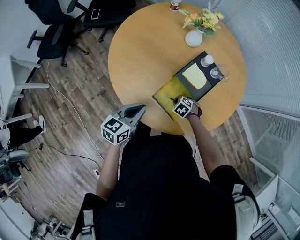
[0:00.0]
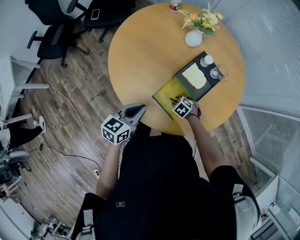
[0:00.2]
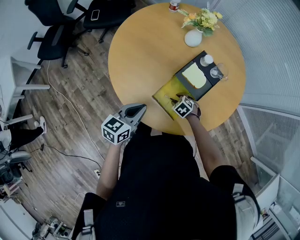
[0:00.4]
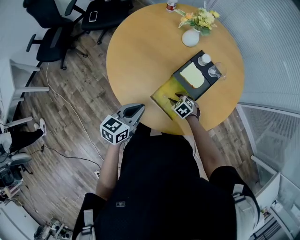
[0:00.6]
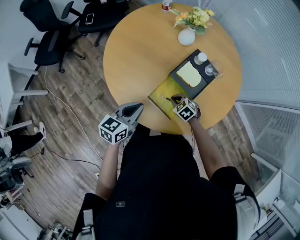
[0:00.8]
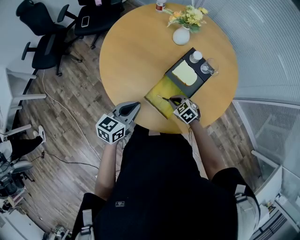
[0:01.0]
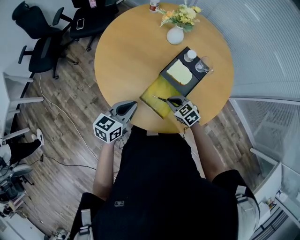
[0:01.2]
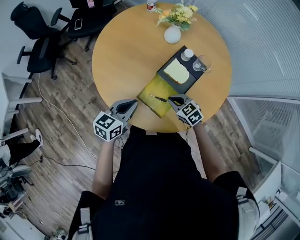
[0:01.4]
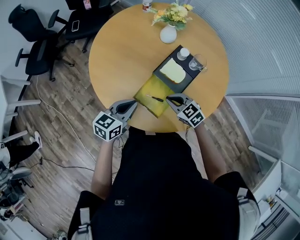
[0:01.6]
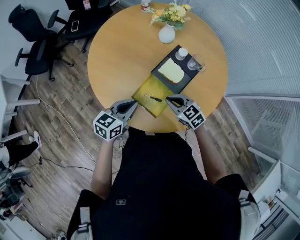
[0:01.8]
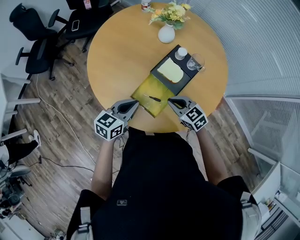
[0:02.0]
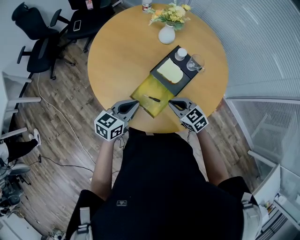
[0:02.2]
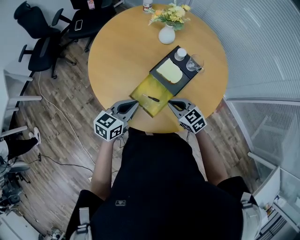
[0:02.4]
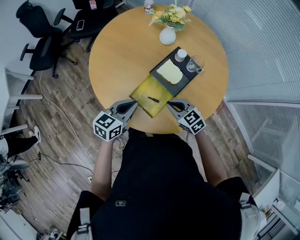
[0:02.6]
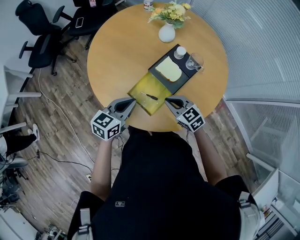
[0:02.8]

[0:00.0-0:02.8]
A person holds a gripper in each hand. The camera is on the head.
0.0 to 1.4 s: The right gripper goes some 15 cm upward, swivels roughly 30 degrees, and opens and closes again.
1.4 to 2.8 s: The left gripper shifts some 5 cm to the right. Meanwhile the right gripper goes about 5 cm upward.

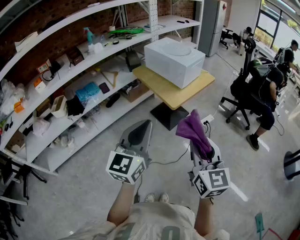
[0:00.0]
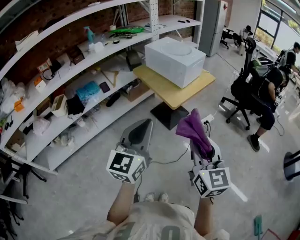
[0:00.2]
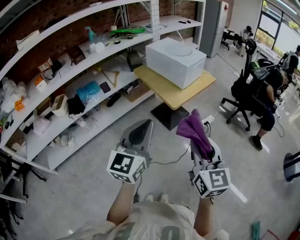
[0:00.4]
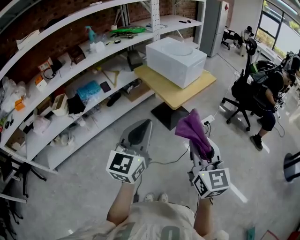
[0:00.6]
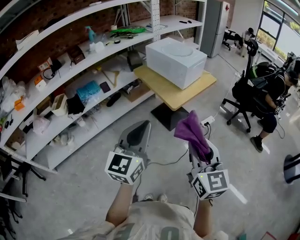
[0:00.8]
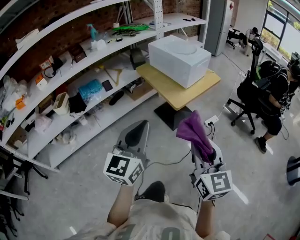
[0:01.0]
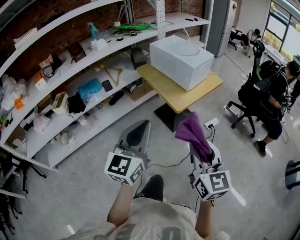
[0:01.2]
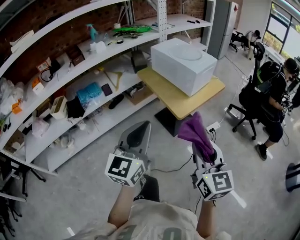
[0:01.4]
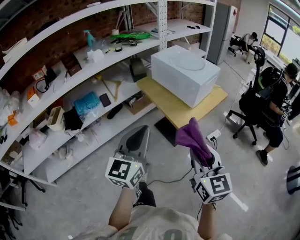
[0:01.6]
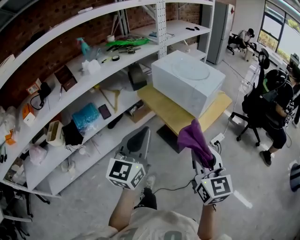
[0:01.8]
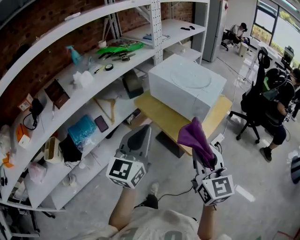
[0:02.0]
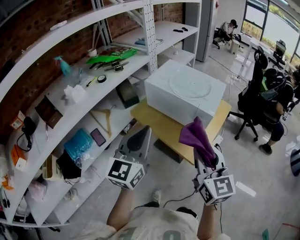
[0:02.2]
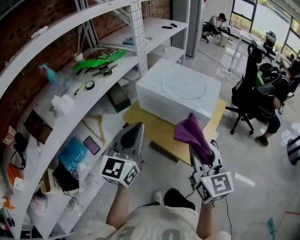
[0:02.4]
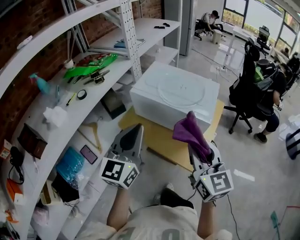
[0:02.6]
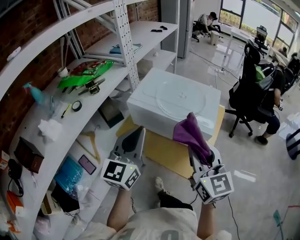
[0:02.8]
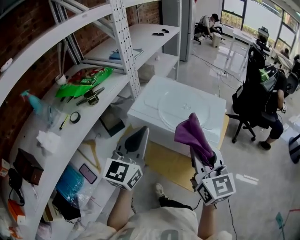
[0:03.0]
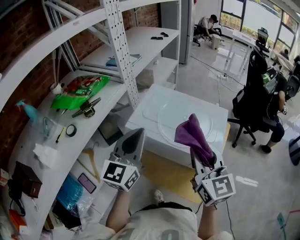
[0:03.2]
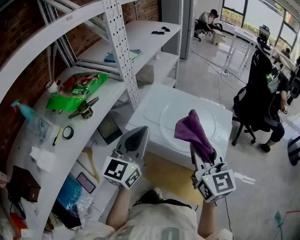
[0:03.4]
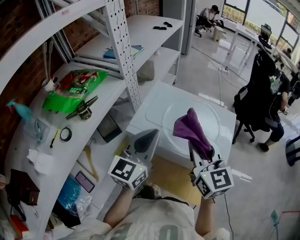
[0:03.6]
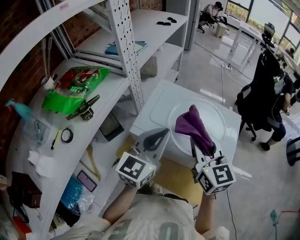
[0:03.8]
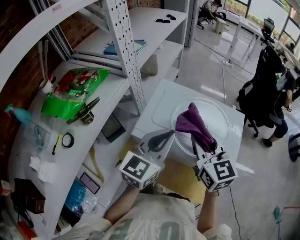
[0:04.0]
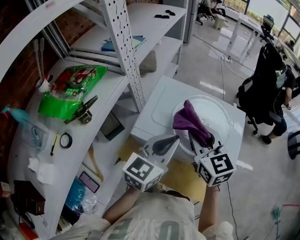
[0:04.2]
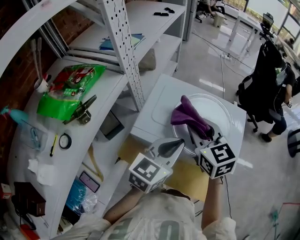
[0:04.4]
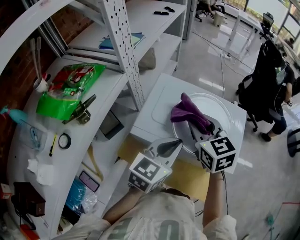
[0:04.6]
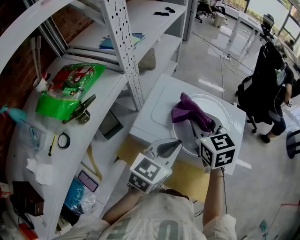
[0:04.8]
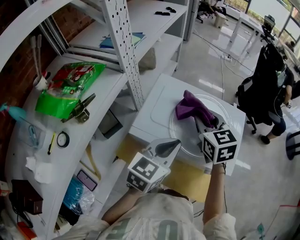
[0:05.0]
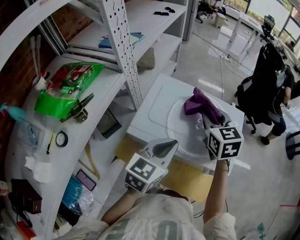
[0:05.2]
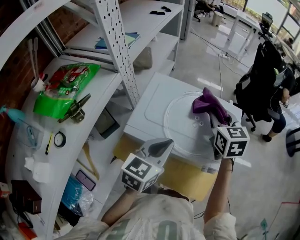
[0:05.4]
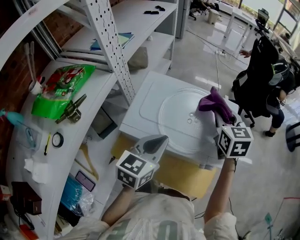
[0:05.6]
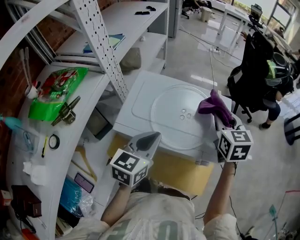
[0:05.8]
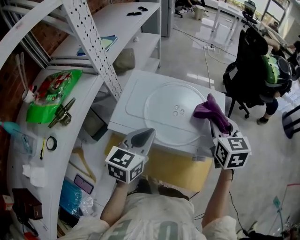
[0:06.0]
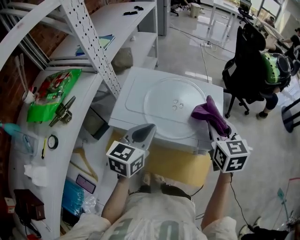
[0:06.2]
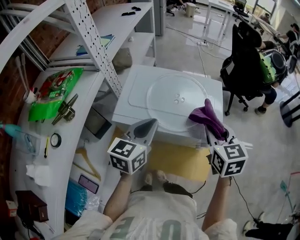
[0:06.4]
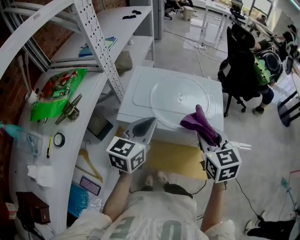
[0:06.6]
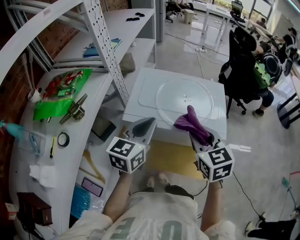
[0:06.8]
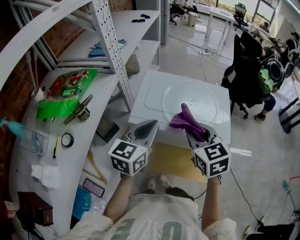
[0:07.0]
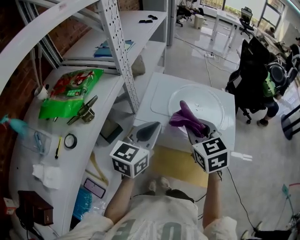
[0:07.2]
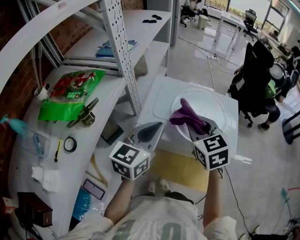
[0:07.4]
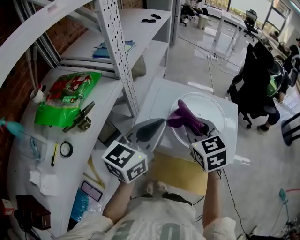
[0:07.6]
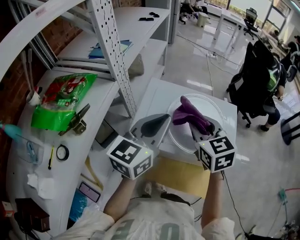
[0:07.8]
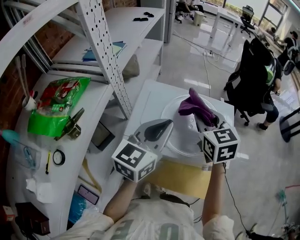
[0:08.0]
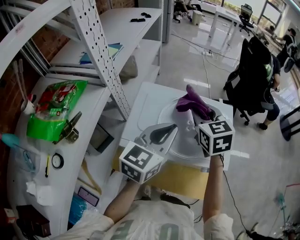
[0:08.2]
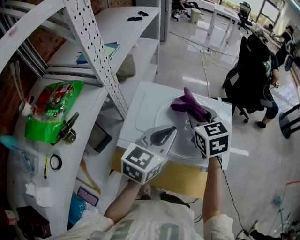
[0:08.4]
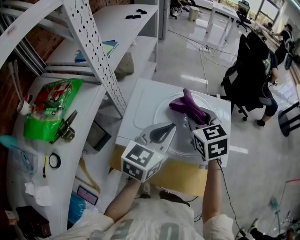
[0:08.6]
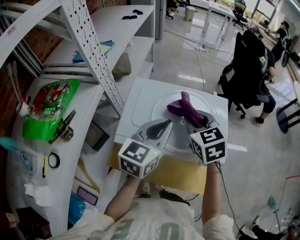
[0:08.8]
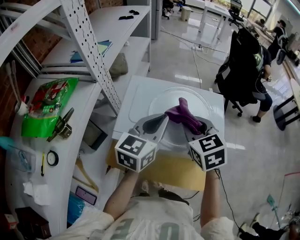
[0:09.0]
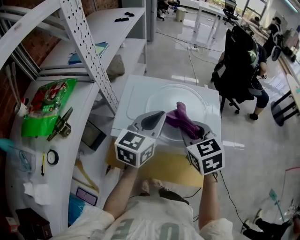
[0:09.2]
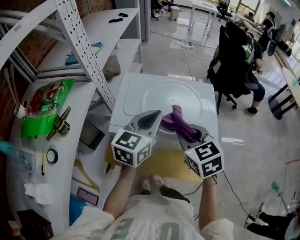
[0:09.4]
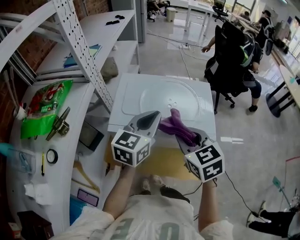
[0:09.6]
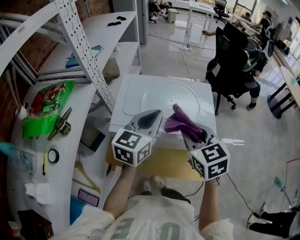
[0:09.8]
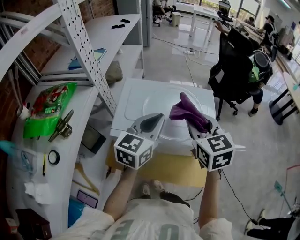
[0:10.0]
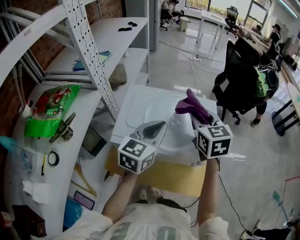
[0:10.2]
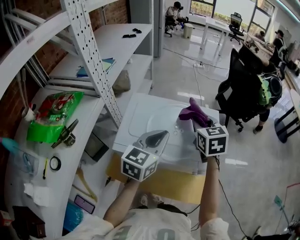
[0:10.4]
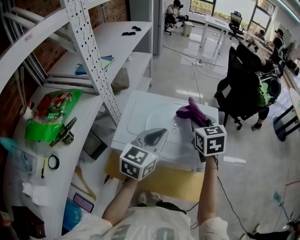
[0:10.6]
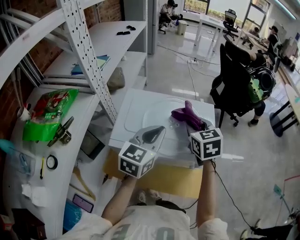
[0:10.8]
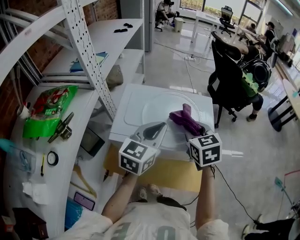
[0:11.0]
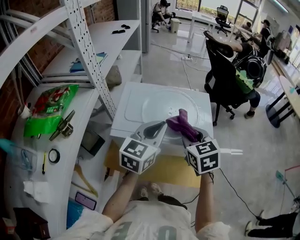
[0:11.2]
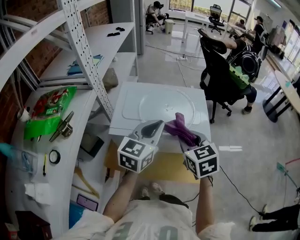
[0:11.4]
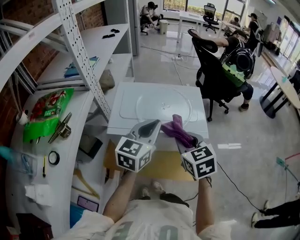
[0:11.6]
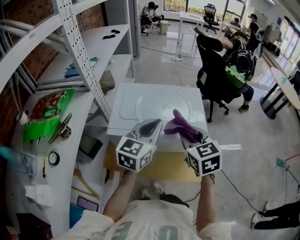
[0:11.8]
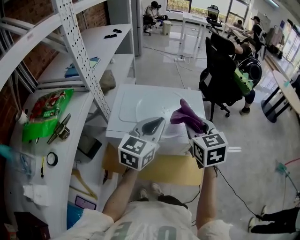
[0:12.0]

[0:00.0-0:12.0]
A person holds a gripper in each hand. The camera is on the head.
0.0 to 1.6 s: Both grippers travel together forward, some 15 cm.
1.6 to 3.0 s: The two grippers travel together, forward, approximately 50 cm. The right gripper swivels approximately 20 degrees; the left gripper swivels some 20 degrees.
3.0 to 4.4 s: The left gripper heads forward, downward and to the right, covering roughly 15 cm, and swivels about 30 degrees. The right gripper moves forward and to the left, roughly 20 cm.
4.4 to 6.0 s: The right gripper heads to the right, covering some 20 cm, and swivels approximately 20 degrees.
6.0 to 7.6 s: The left gripper moves upward and to the left, approximately 10 cm; the right gripper shifts roughly 20 cm to the left.
7.6 to 9.0 s: The right gripper shifts approximately 5 cm to the right, and travels forward and back again, roughly 10 cm each way. The left gripper moves to the right and downward, some 10 cm.
9.0 to 10.4 s: The right gripper travels forward and to the right by roughly 10 cm.
10.4 to 12.0 s: The right gripper goes about 10 cm backward. Meanwhile the left gripper changes place by roughly 5 cm.

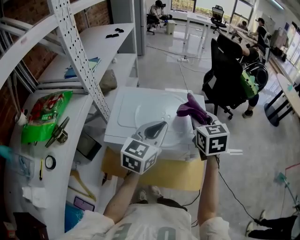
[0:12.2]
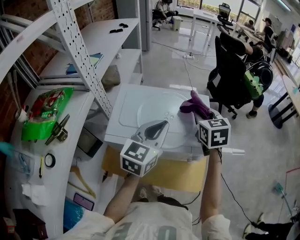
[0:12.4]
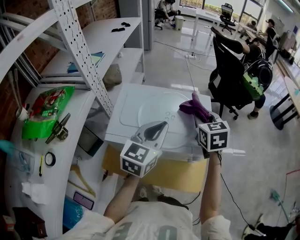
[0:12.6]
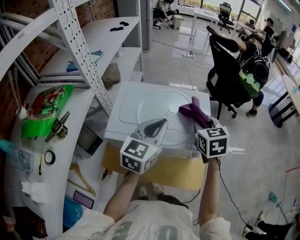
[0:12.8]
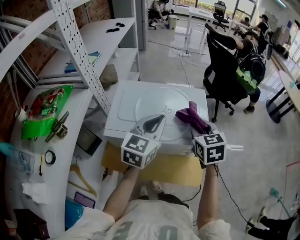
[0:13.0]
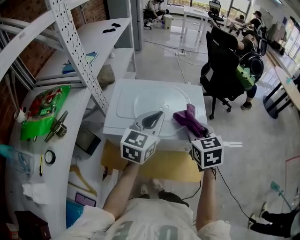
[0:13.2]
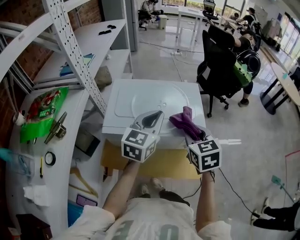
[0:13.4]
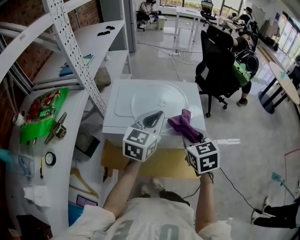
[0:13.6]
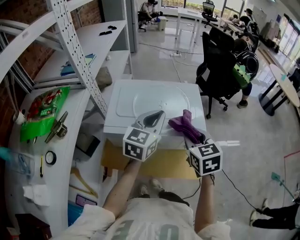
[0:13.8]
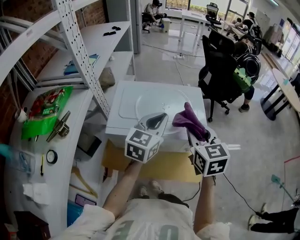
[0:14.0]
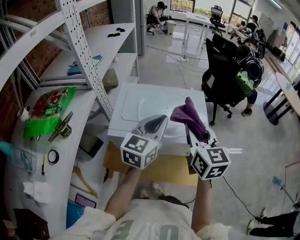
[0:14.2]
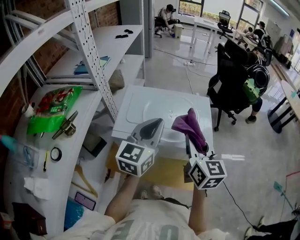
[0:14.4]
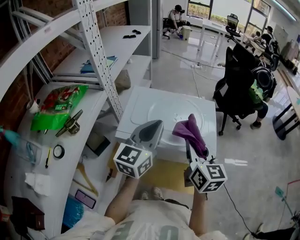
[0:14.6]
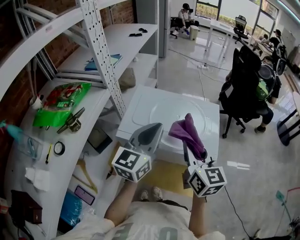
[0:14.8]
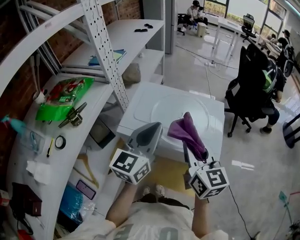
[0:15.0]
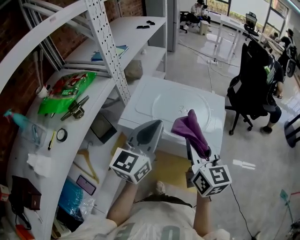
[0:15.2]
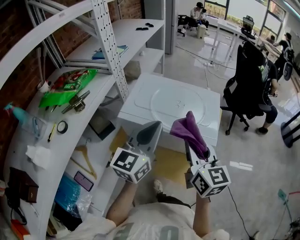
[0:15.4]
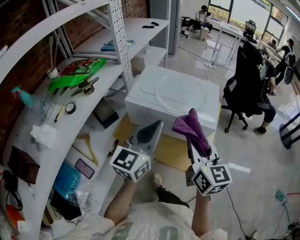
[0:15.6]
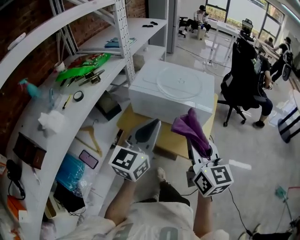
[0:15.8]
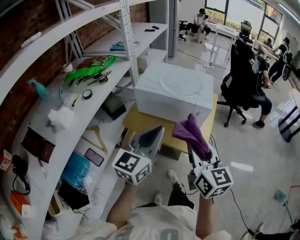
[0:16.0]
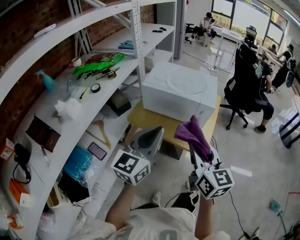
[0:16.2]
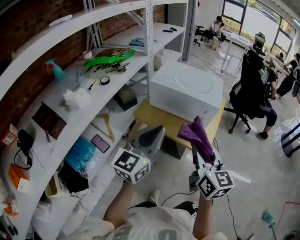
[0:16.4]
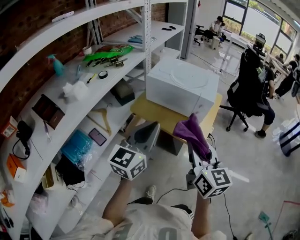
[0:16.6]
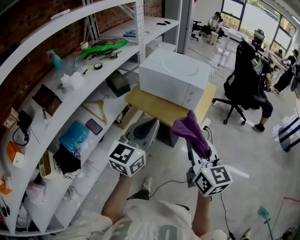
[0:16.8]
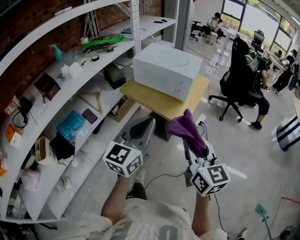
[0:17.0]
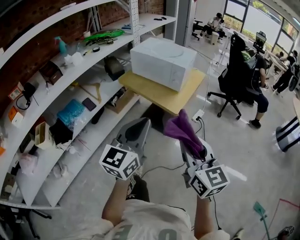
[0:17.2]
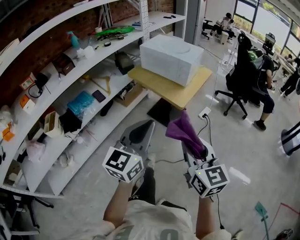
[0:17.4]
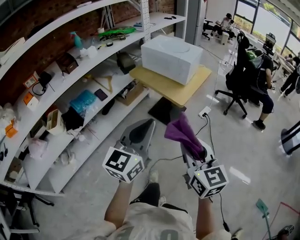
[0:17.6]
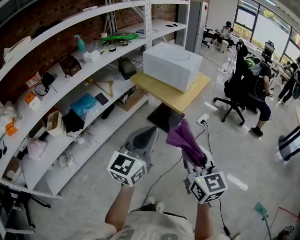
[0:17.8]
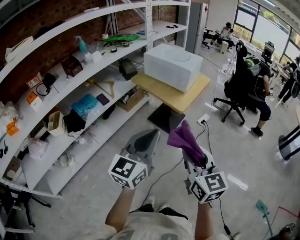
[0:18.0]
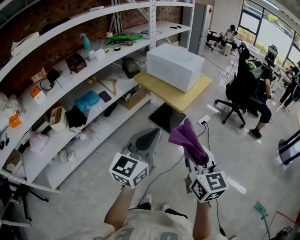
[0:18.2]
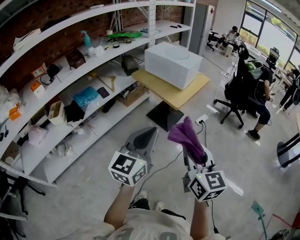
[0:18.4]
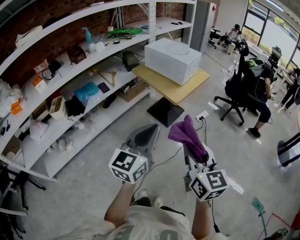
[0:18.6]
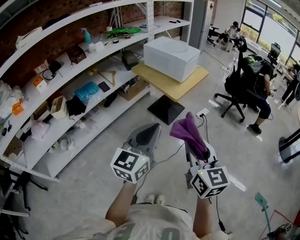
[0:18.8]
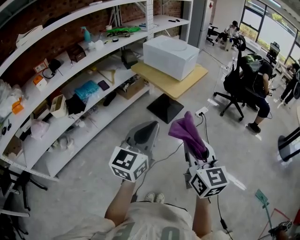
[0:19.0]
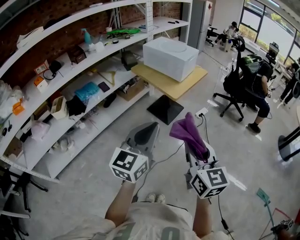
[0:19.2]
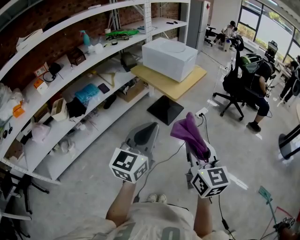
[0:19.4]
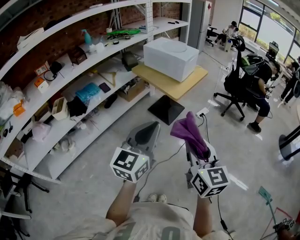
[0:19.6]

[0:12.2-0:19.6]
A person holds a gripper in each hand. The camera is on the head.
12.2 to 13.6 s: The right gripper shifts approximately 15 cm backward and downward.
13.6 to 15.2 s: The left gripper is displaced to the left and backward by some 10 cm, and changes its angle by some 20 degrees, while the right gripper shifts some 5 cm upward, and changes its angle by some 30 degrees.
15.2 to 16.6 s: Both grippers move backward, about 35 cm.
16.6 to 18.2 s: The grippers both shift backward and to the right by roughly 40 cm.
18.2 to 19.6 s: Both grippers move backward and to the right, roughly 10 cm.

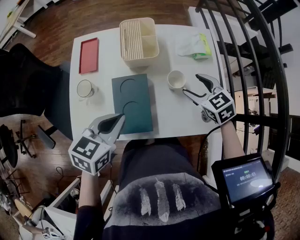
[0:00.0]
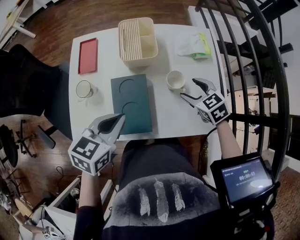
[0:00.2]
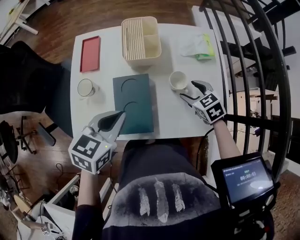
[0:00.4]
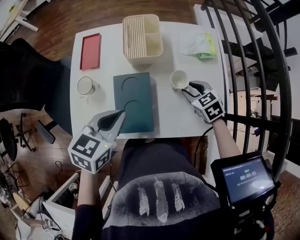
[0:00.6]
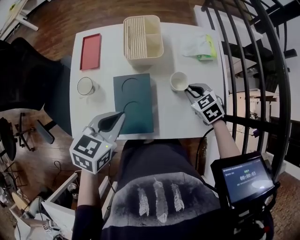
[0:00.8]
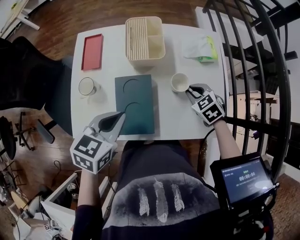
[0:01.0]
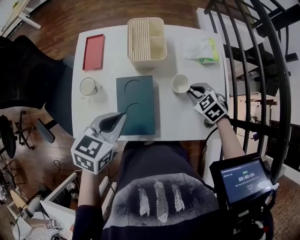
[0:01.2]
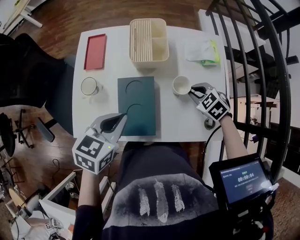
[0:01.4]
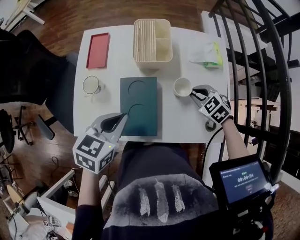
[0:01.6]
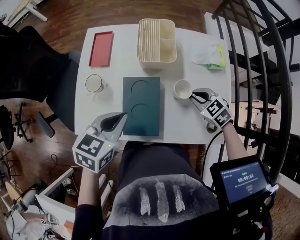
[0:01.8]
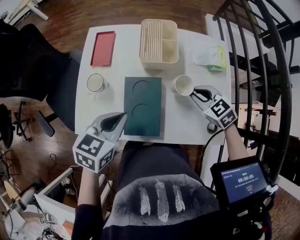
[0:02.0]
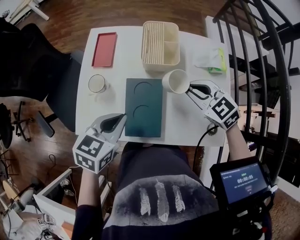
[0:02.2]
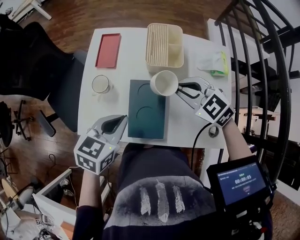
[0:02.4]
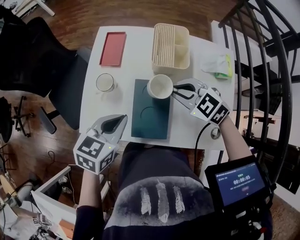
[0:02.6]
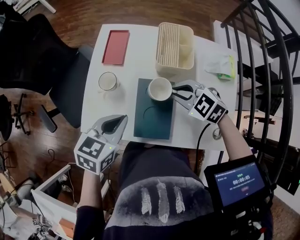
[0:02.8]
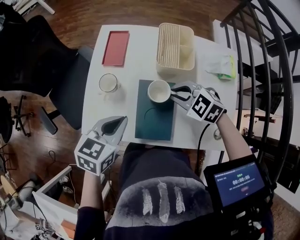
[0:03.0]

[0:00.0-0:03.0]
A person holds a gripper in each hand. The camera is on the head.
0.0 to 1.6 s: The right gripper shifts approximately 10 cm downward, changes its angle by about 20 degrees, and closes its fingers.
1.6 to 3.0 s: The left gripper heads to the left, covering approximately 5 cm. The right gripper goes roughly 20 cm to the left, and rotates some 20 degrees.
